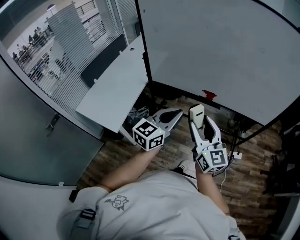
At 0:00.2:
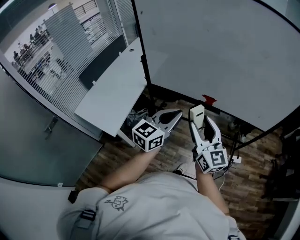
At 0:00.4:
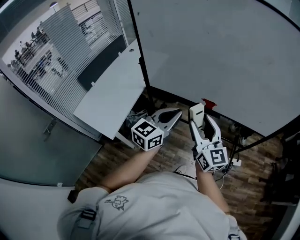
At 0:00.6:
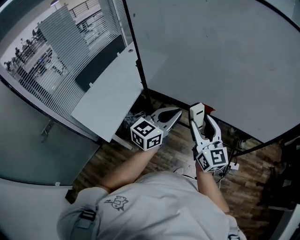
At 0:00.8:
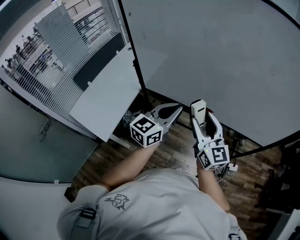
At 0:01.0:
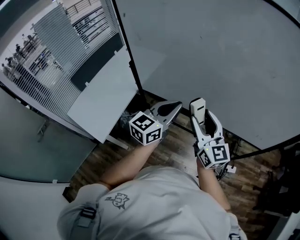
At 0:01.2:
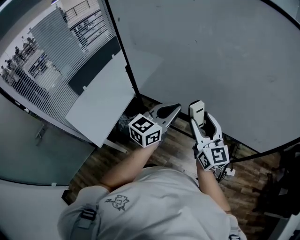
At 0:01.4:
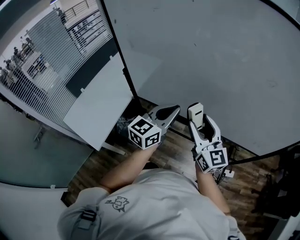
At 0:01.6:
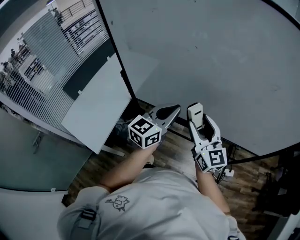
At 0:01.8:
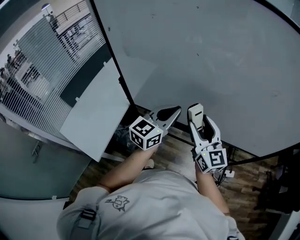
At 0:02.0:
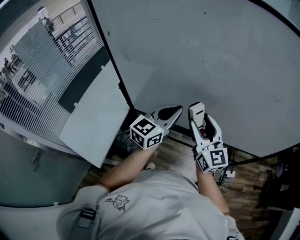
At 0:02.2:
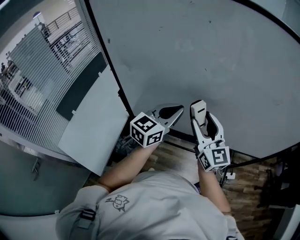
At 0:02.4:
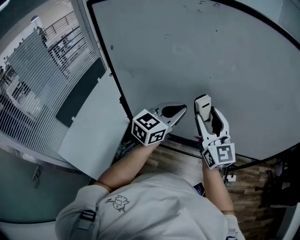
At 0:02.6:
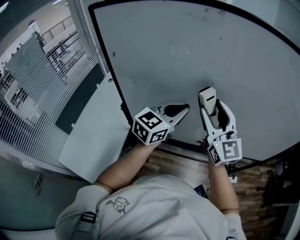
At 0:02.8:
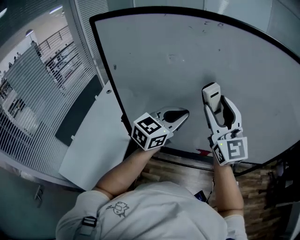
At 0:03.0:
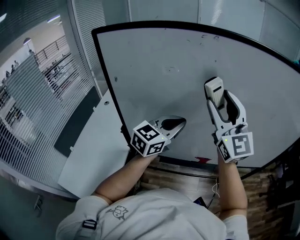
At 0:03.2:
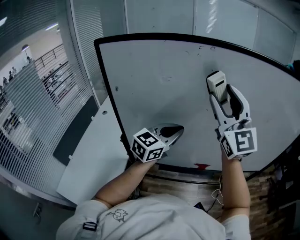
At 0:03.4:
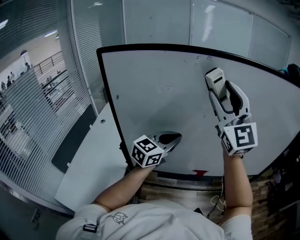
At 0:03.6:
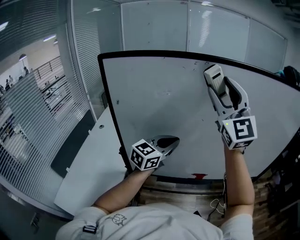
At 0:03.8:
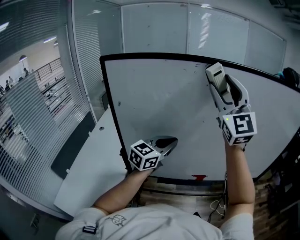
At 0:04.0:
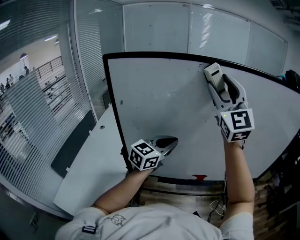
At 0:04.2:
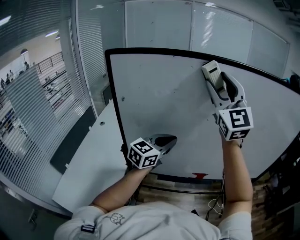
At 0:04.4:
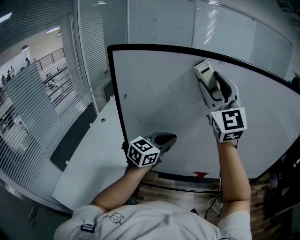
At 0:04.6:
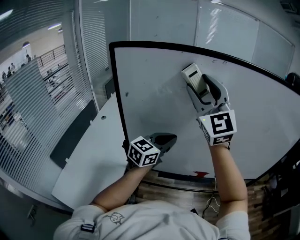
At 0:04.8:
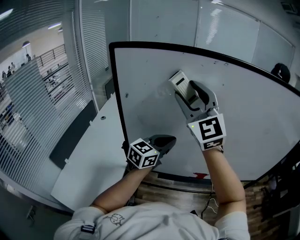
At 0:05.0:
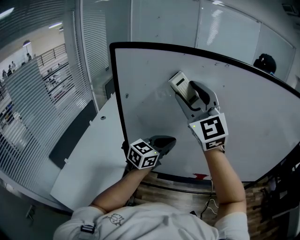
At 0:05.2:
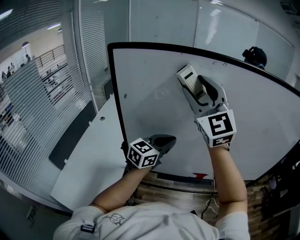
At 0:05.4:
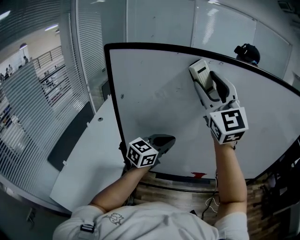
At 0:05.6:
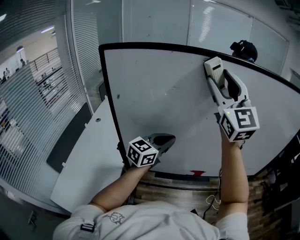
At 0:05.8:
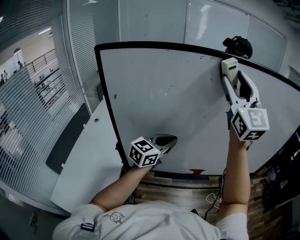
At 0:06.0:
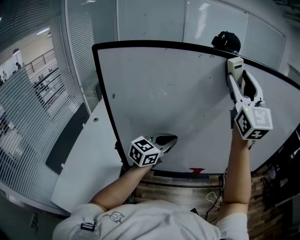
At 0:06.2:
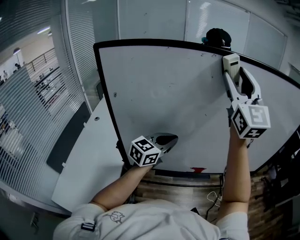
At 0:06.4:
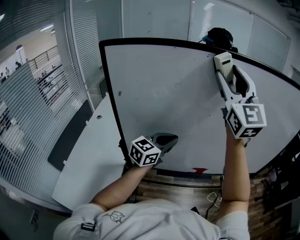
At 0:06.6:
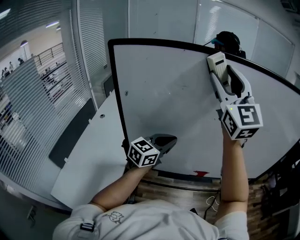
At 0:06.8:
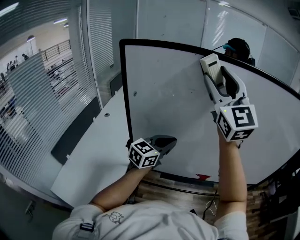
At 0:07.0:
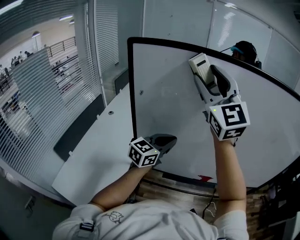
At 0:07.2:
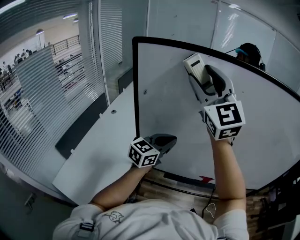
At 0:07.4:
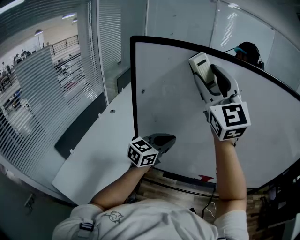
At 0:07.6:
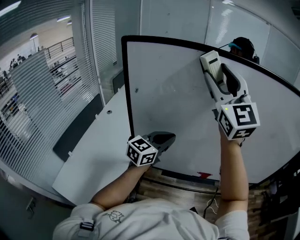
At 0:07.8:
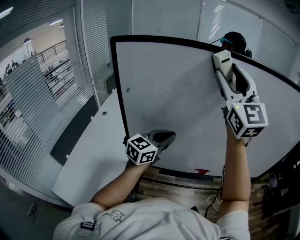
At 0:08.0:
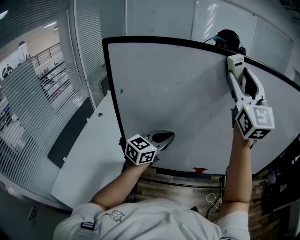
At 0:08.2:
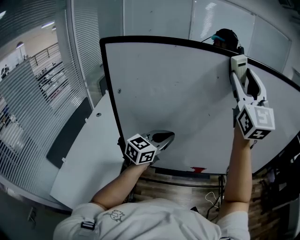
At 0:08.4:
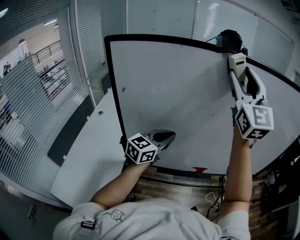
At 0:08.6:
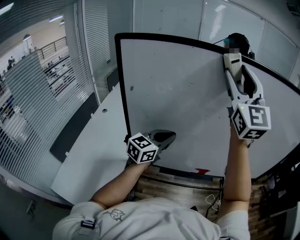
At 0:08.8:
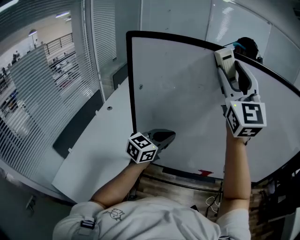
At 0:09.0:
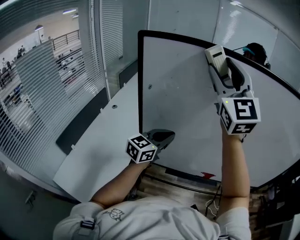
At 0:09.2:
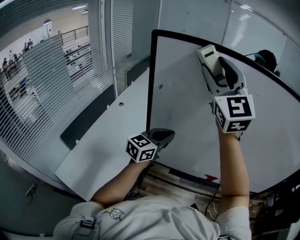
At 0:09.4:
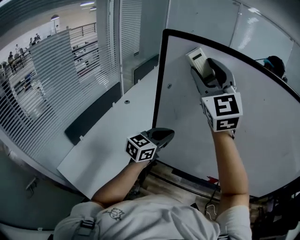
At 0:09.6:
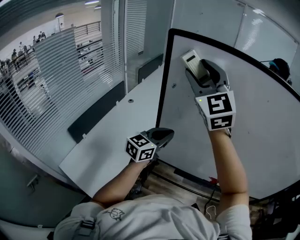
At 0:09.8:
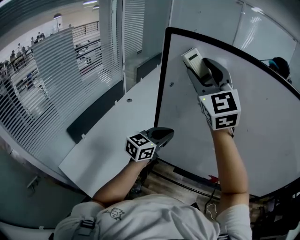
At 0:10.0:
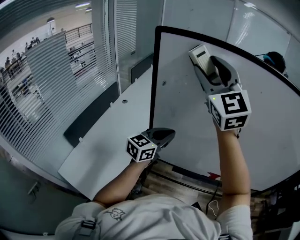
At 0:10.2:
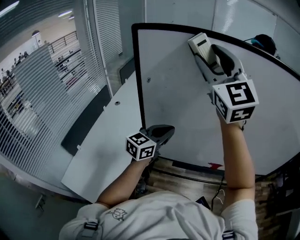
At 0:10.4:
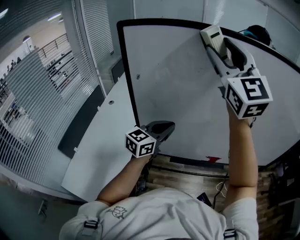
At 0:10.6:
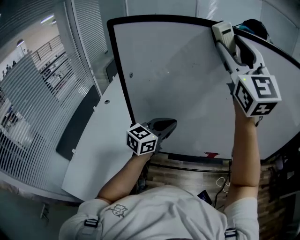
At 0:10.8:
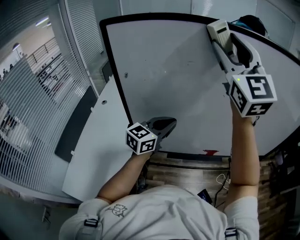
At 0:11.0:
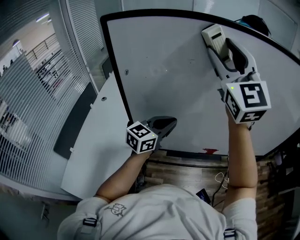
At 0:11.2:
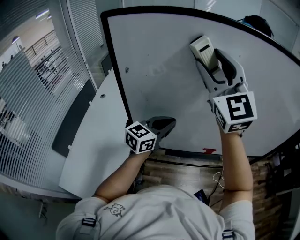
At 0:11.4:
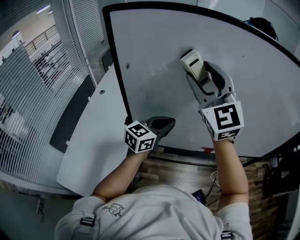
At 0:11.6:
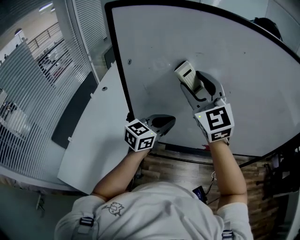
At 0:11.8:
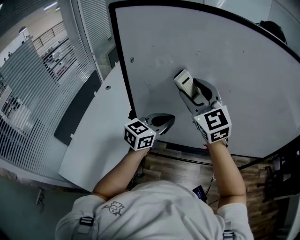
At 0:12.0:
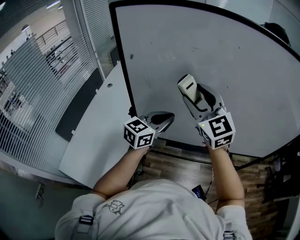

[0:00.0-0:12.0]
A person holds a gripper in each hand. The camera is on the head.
0:00.0 to 0:01.6: The two grippers go approximately 30 cm forward.
0:01.6 to 0:03.0: The right gripper moves upward and forward, about 30 cm, and swivels approximately 30 degrees, while the left gripper moves upward, forward and to the left, about 15 cm, and turns by roughly 20 degrees.
0:03.0 to 0:04.4: The right gripper moves upward and to the left, some 15 cm; the left gripper shifts approximately 5 cm to the left.
0:04.4 to 0:06.0: The right gripper heads to the right, covering roughly 15 cm.
0:06.0 to 0:07.6: The left gripper moves to the left, roughly 10 cm, while the right gripper is displaced to the left by roughly 15 cm.
0:07.6 to 0:09.0: The right gripper reaches some 15 cm to the right, then returns.
0:09.0 to 0:10.4: The right gripper travels to the left and back again, roughly 15 cm each way. Meanwhile the left gripper reaches roughly 10 cm to the left, then returns.
0:10.4 to 0:12.0: The right gripper goes approximately 25 cm downward, and rotates roughly 20 degrees.

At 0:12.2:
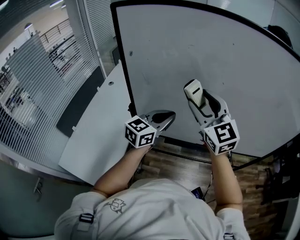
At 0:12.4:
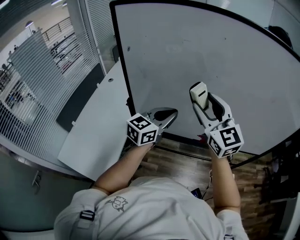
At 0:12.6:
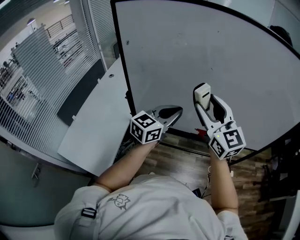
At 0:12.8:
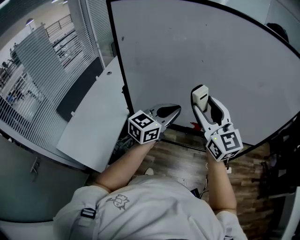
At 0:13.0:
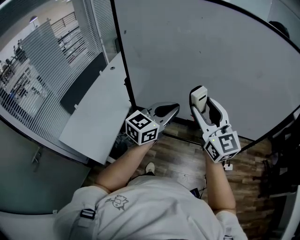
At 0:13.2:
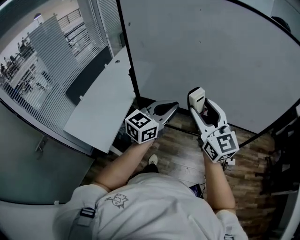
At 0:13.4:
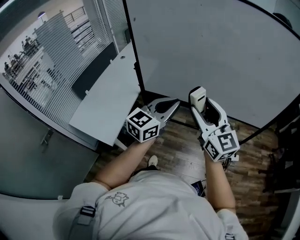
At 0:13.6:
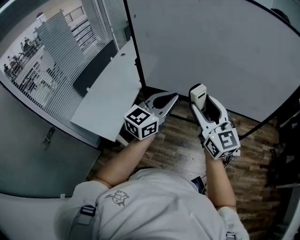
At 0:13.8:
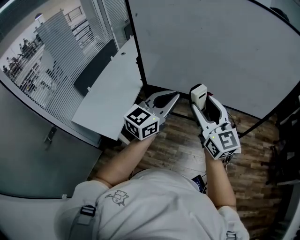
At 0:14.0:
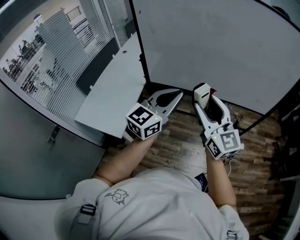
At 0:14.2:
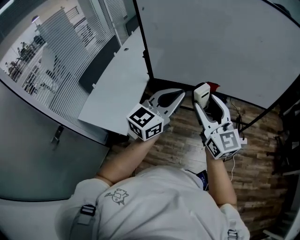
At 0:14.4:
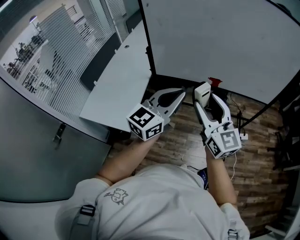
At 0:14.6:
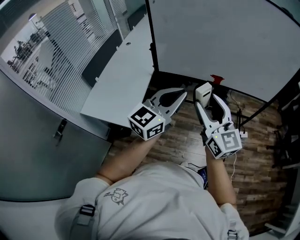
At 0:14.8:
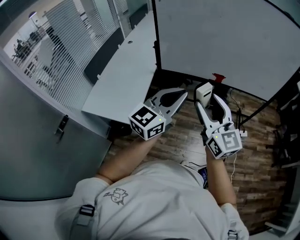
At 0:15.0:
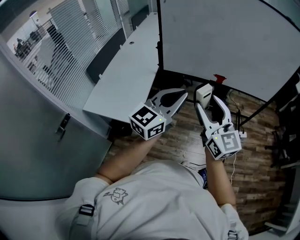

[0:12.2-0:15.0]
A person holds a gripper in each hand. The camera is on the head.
0:12.2 to 0:13.6: The left gripper goes about 30 cm backward. Meanwhile the right gripper shifts about 35 cm backward and to the right, and turns by about 20 degrees.
0:13.6 to 0:15.0: The grippers both shift backward and to the left by roughly 25 cm.

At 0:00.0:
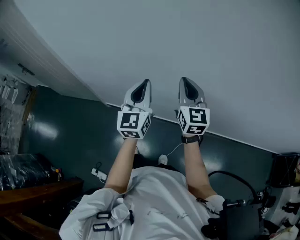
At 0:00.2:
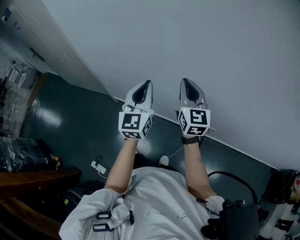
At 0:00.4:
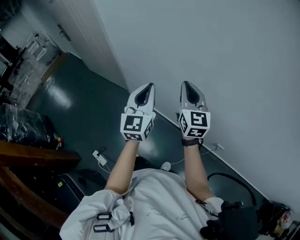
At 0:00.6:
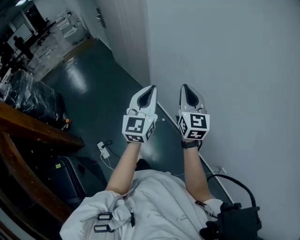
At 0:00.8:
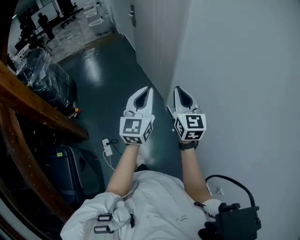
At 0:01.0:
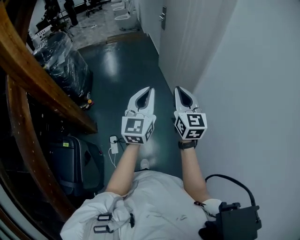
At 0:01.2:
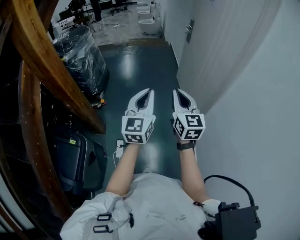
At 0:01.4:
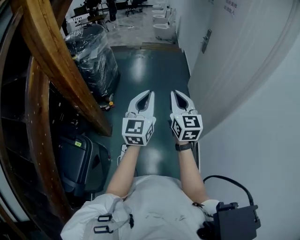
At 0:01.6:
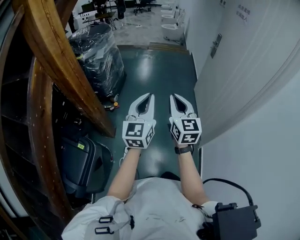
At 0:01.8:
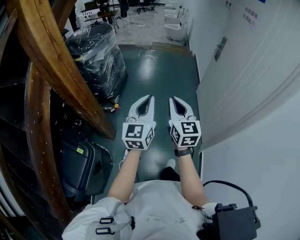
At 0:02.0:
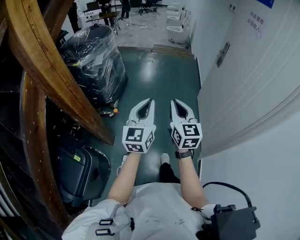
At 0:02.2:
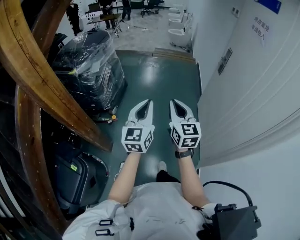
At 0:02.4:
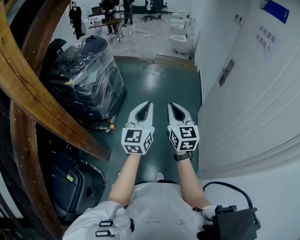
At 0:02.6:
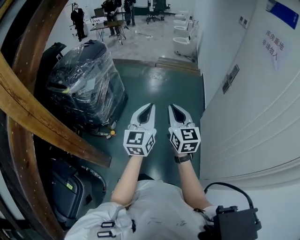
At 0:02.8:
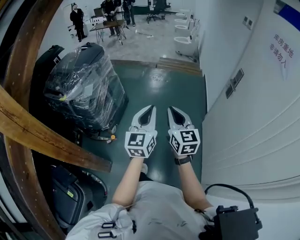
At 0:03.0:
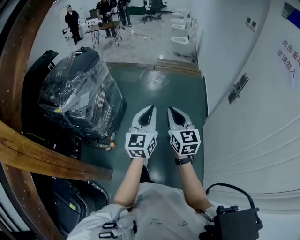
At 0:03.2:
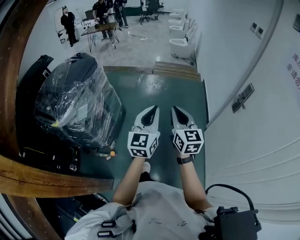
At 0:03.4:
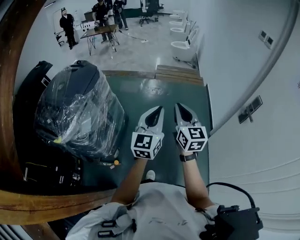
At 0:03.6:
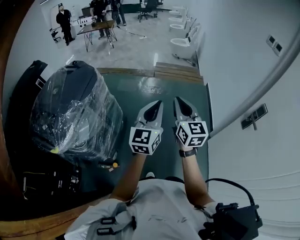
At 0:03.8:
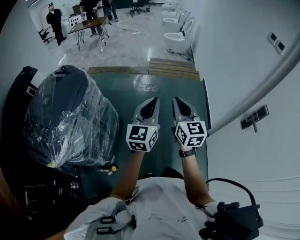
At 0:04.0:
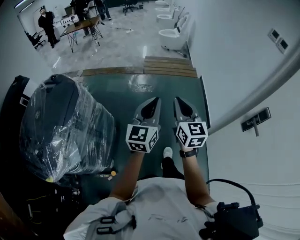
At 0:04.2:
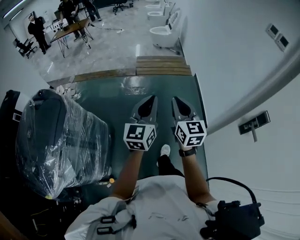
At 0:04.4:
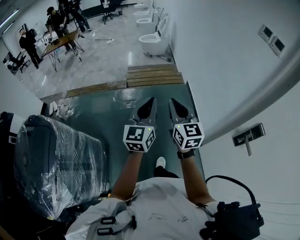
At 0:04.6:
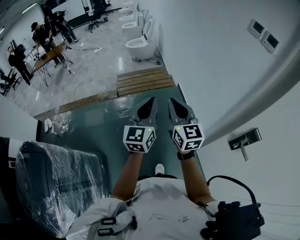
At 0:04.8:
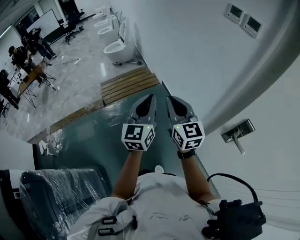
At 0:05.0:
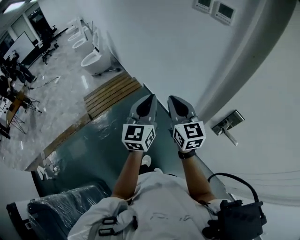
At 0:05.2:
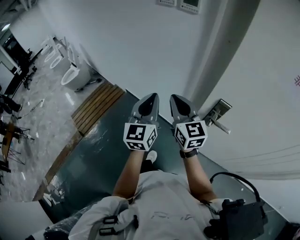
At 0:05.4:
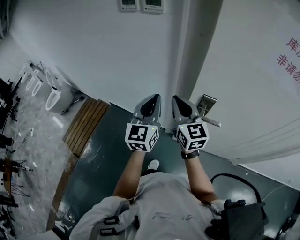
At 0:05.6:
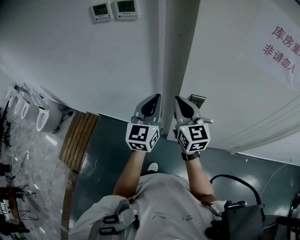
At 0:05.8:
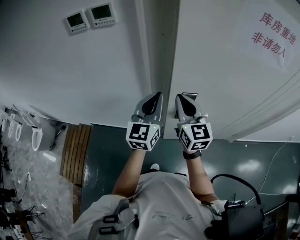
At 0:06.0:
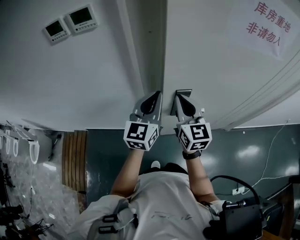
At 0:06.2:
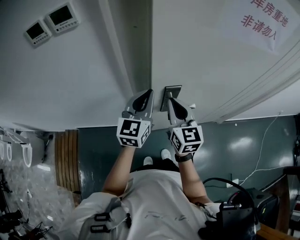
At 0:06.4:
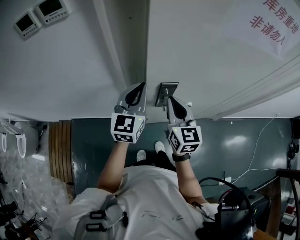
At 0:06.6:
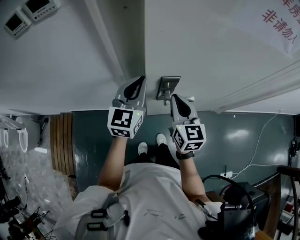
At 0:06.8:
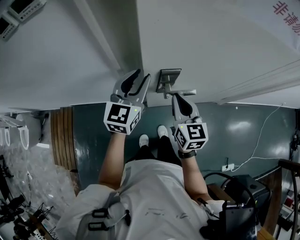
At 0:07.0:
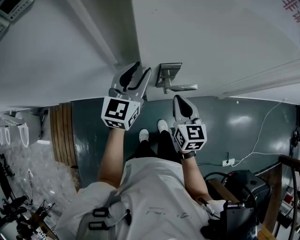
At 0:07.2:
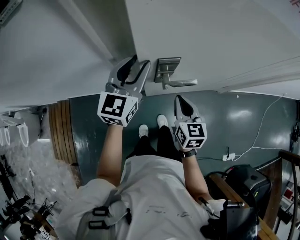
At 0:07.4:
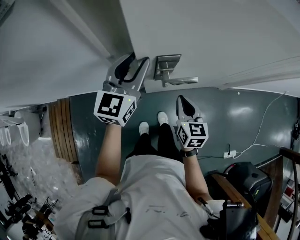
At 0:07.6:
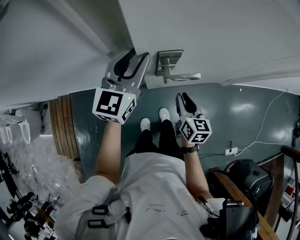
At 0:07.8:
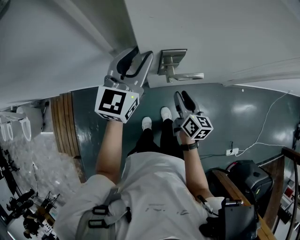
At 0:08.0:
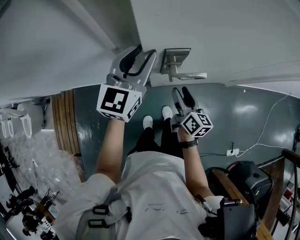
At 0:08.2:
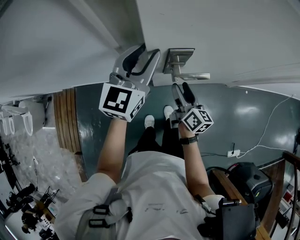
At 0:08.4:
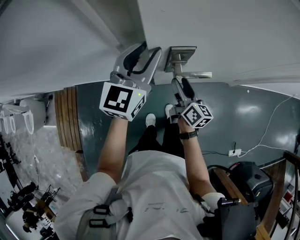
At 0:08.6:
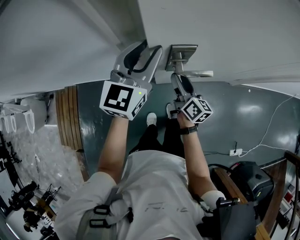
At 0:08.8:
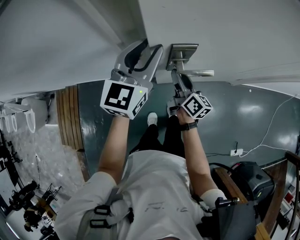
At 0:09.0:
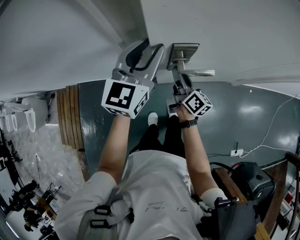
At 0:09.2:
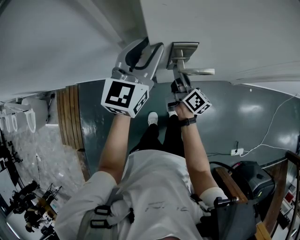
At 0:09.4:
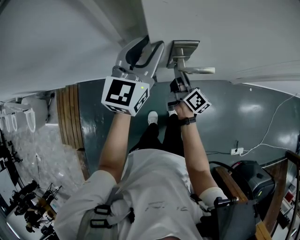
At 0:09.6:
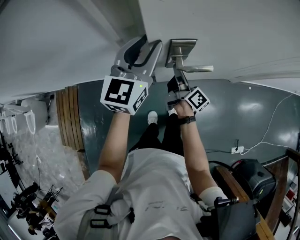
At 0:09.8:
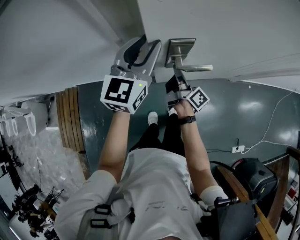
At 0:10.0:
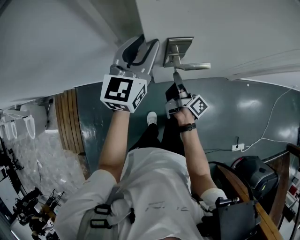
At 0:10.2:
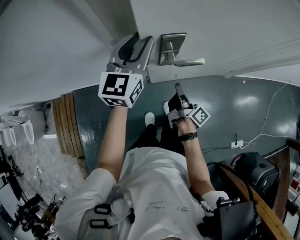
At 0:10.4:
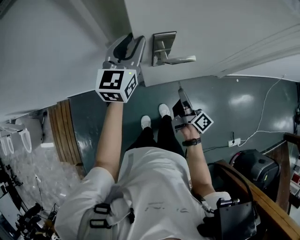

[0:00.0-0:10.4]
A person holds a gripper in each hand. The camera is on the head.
0:00.0 to 0:01.4: Both grippers are carried roughly 80 cm. The right gripper turns by some 80 degrees; the left gripper changes its angle by about 70 degrees.
0:01.4 to 0:03.0: The pair of grippers is taken forward, roughly 60 cm.
0:03.0 to 0:04.4: The pair of grippers is taken forward, approximately 50 cm.
0:04.4 to 0:06.0: Both grippers are carried roughly 50 cm. The left gripper swivels some 90 degrees, while the right gripper rotates about 80 degrees.
0:06.0 to 0:07.4: The left gripper goes roughly 10 cm downward and forward, and opens up; the right gripper goes roughly 25 cm downward and to the right, and turns by some 30 degrees.
0:07.4 to 0:09.0: The right gripper shifts roughly 10 cm forward and to the left, rotates around the line of its fingers by approximately 40 degrees, clockwise from behind, and opens its fingers.
0:09.0 to 0:10.4: The right gripper shifts about 15 cm backward and to the right, and closes its fingers.
